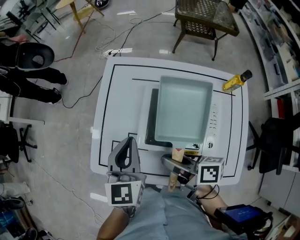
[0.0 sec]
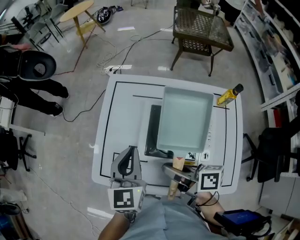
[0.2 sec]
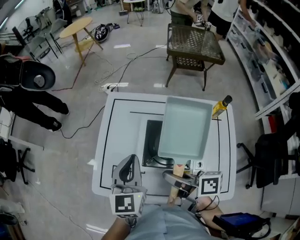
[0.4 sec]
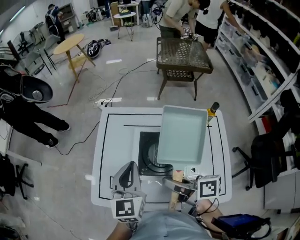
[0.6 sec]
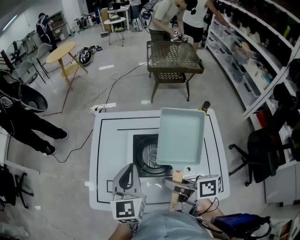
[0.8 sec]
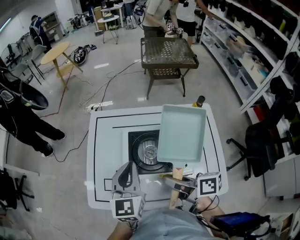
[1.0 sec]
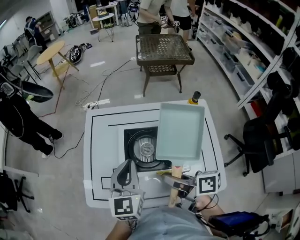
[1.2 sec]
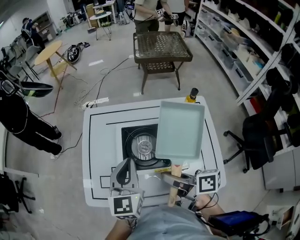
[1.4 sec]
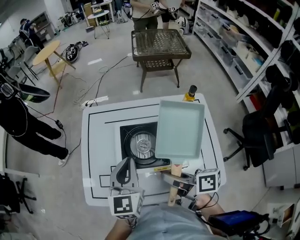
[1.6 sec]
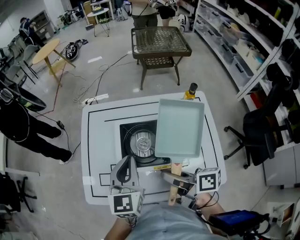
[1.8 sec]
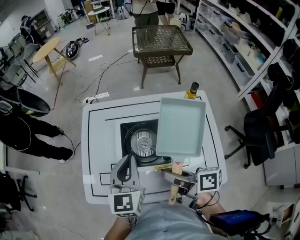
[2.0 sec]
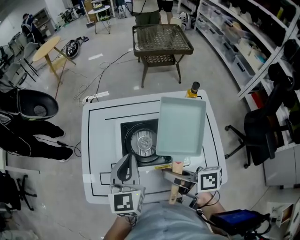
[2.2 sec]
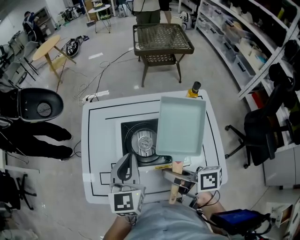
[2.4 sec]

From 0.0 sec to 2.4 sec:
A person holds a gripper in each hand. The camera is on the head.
From 0.0 sec to 1.2 sec: The left gripper moves to the right, upward and backward, approximately 10 cm; the right gripper is displaced upward, to the right and backward by some 15 cm.
From 1.2 sec to 2.4 sec: The grippers stay close to where they were, moving slightly.

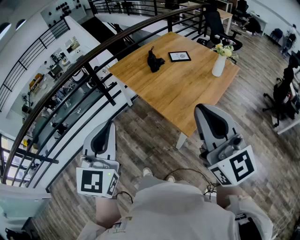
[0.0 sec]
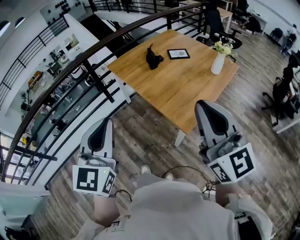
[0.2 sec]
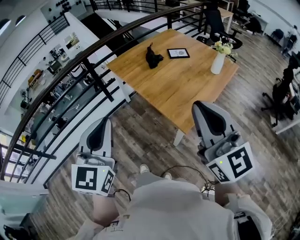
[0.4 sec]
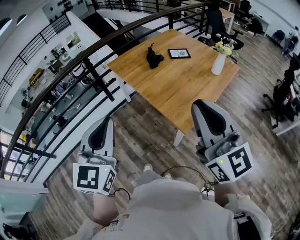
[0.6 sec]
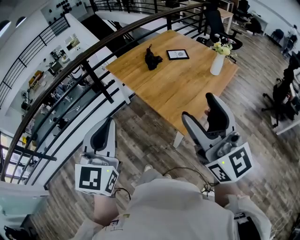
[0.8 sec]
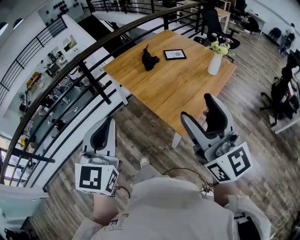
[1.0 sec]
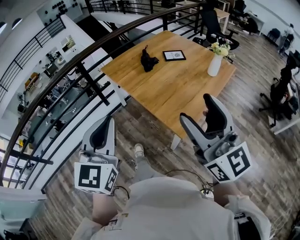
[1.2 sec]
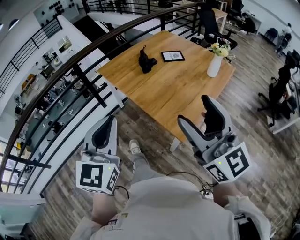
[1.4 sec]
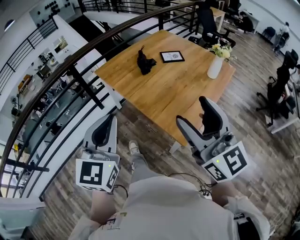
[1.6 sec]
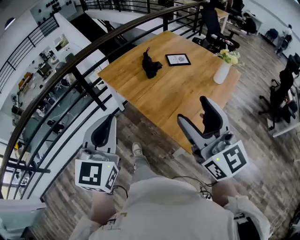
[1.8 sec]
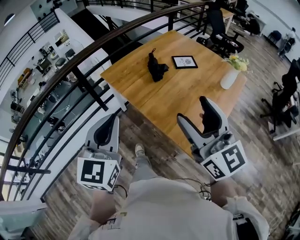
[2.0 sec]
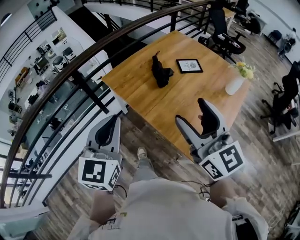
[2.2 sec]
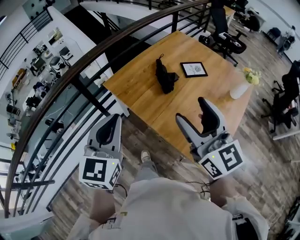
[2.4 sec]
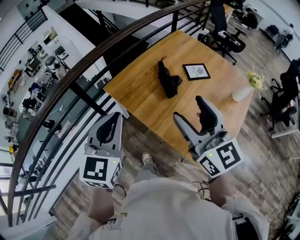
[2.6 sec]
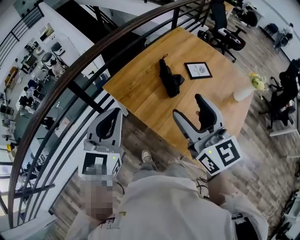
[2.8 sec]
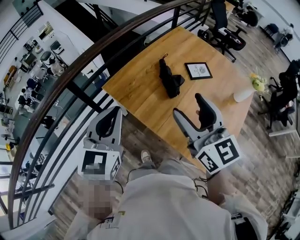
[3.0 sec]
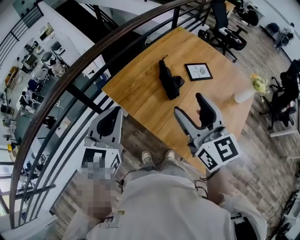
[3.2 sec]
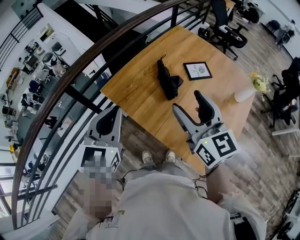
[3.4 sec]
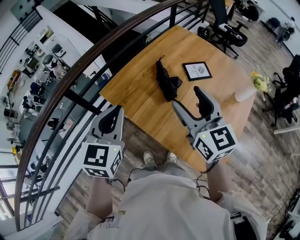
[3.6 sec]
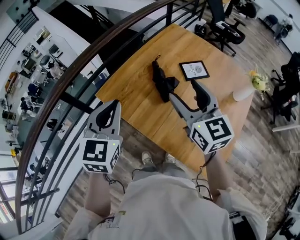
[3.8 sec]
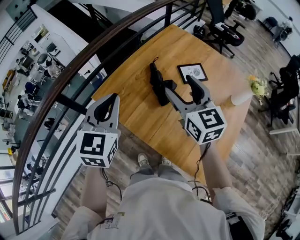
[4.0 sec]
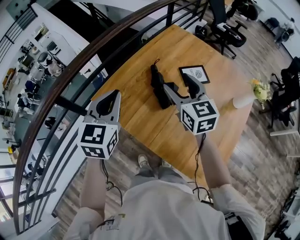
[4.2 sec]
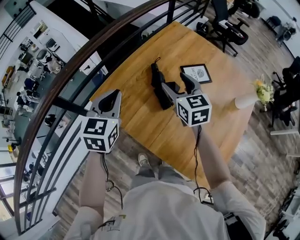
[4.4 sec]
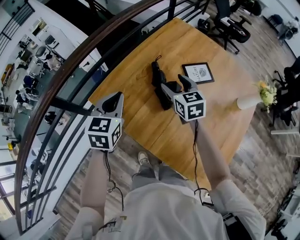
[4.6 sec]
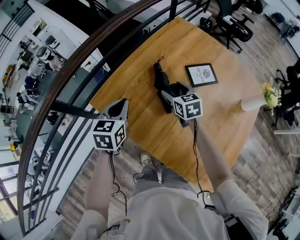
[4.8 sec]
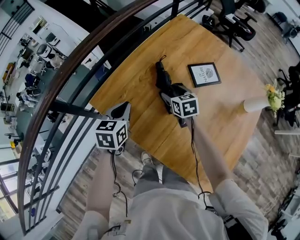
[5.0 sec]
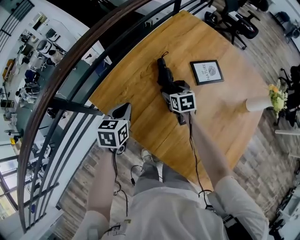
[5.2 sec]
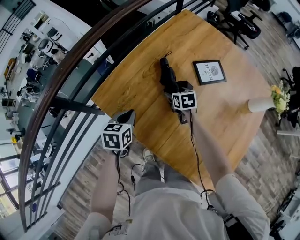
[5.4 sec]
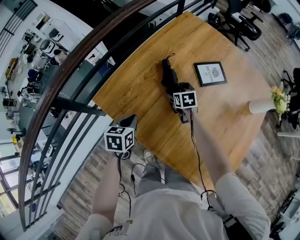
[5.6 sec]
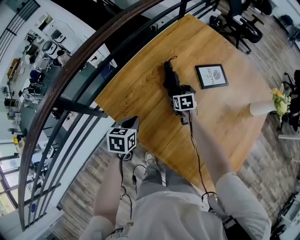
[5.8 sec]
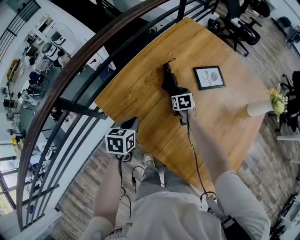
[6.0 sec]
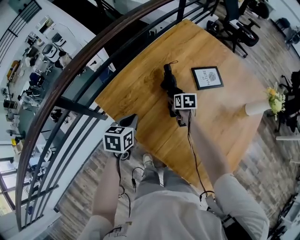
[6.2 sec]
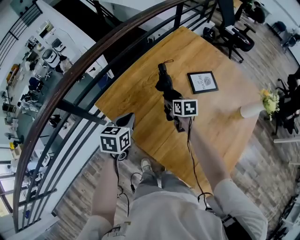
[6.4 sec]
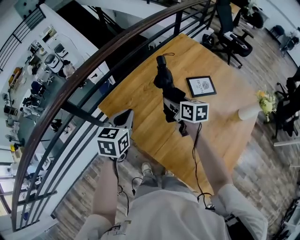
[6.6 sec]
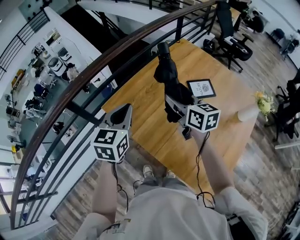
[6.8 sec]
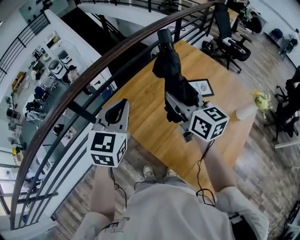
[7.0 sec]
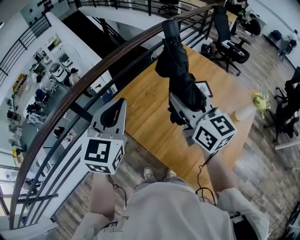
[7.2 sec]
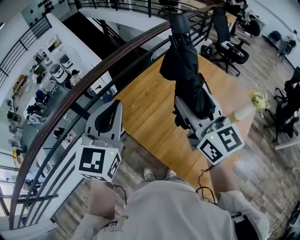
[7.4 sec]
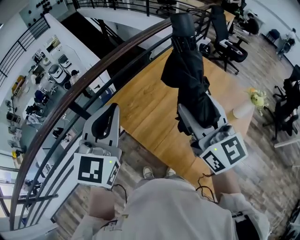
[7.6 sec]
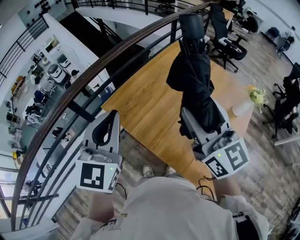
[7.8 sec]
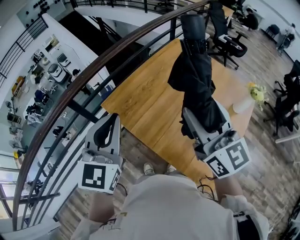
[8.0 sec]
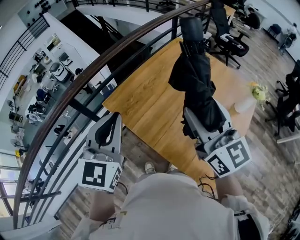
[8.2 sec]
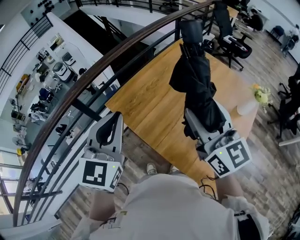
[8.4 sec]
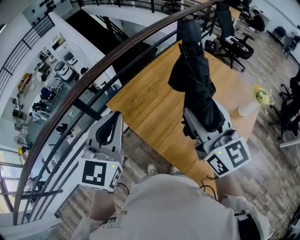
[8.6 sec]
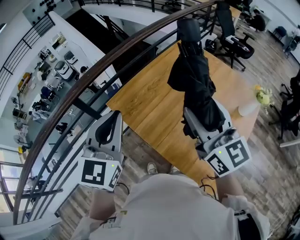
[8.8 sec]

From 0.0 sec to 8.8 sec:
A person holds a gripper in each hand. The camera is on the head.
From 0.0 sec to 1.4 sec: The two grippers go approximately 10 cm forward. The right gripper opens its fingers.
From 1.4 sec to 3.0 sec: Both grippers are carried forward and to the left, some 50 cm.
From 3.0 sec to 4.4 sec: The two grippers go roughly 25 cm forward and downward.
From 4.4 sec to 5.8 sec: Both grippers travel together downward, approximately 25 cm. The left gripper changes its angle by some 30 degrees, while the right gripper tips its fingers downward by about 30 degrees.
From 5.8 sec to 7.4 sec: The two grippers go roughly 50 cm upward. The right gripper tips its fingers upward by about 60 degrees, while the left gripper angles its fingers upward, by roughly 40 degrees.
From 7.4 sec to 8.8 sec: The right gripper changes place by roughly 5 cm.

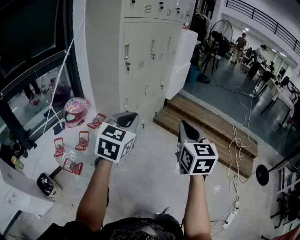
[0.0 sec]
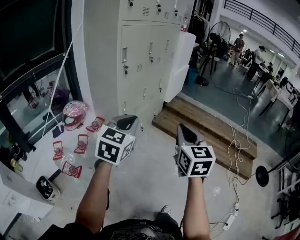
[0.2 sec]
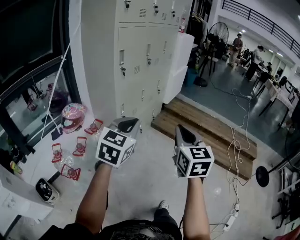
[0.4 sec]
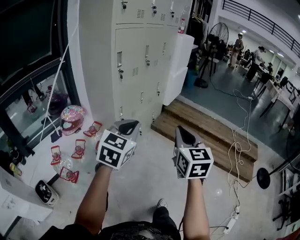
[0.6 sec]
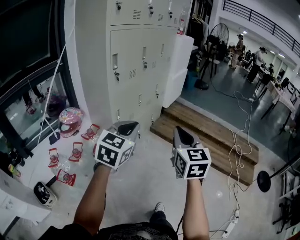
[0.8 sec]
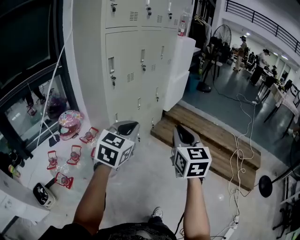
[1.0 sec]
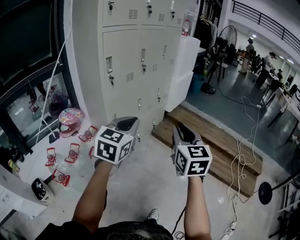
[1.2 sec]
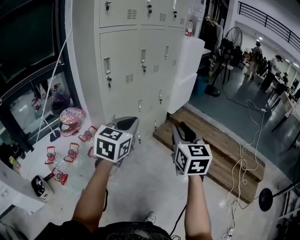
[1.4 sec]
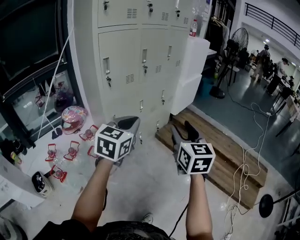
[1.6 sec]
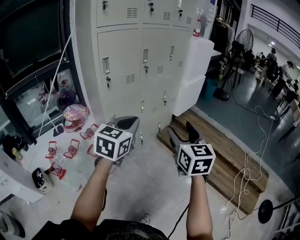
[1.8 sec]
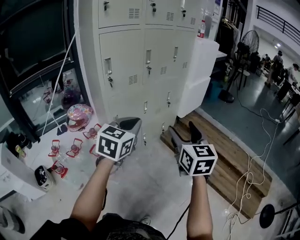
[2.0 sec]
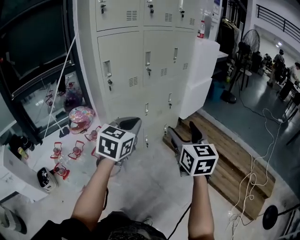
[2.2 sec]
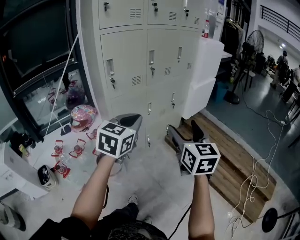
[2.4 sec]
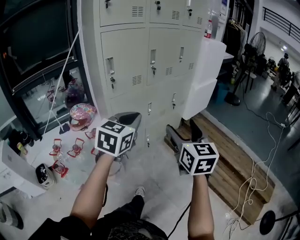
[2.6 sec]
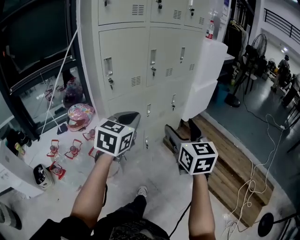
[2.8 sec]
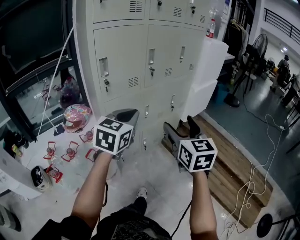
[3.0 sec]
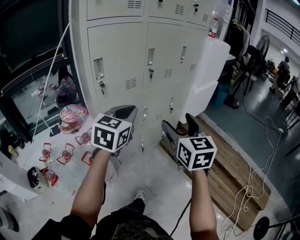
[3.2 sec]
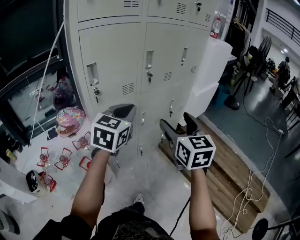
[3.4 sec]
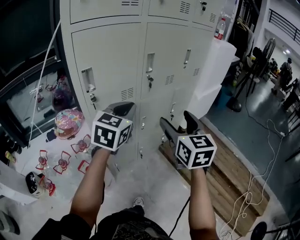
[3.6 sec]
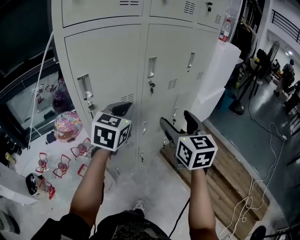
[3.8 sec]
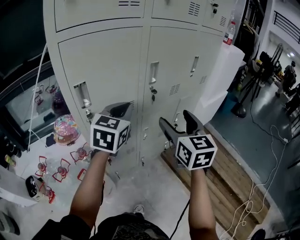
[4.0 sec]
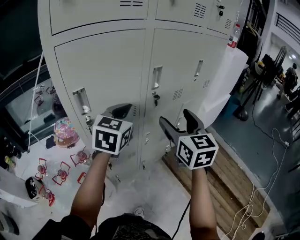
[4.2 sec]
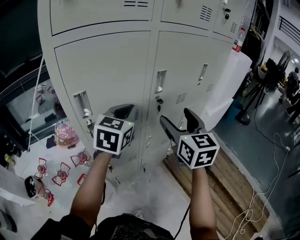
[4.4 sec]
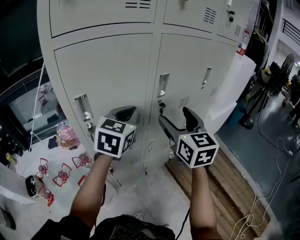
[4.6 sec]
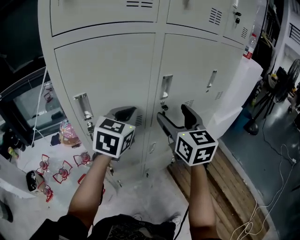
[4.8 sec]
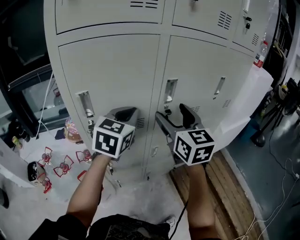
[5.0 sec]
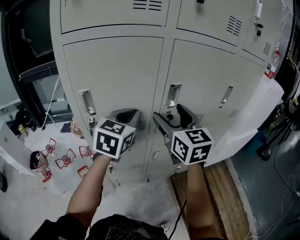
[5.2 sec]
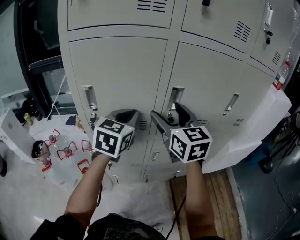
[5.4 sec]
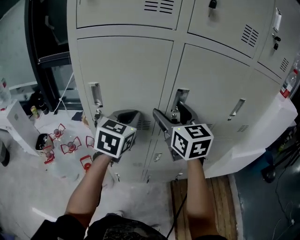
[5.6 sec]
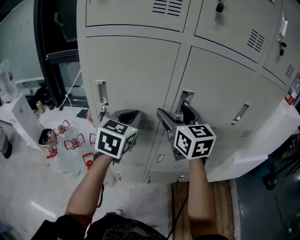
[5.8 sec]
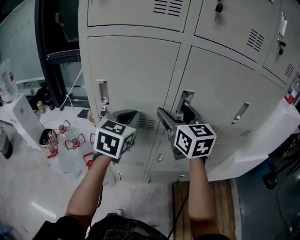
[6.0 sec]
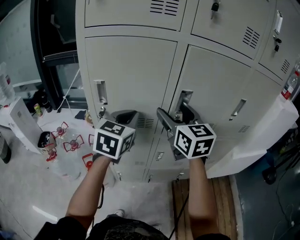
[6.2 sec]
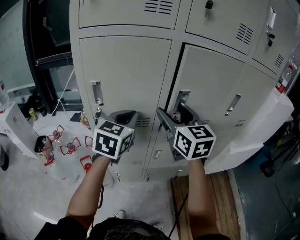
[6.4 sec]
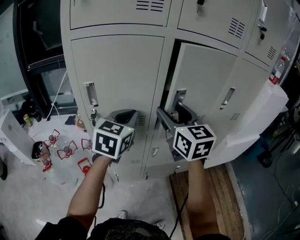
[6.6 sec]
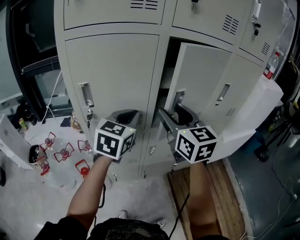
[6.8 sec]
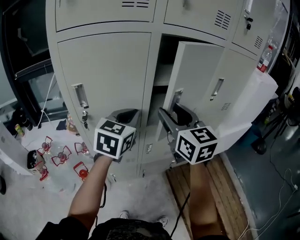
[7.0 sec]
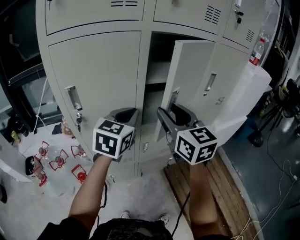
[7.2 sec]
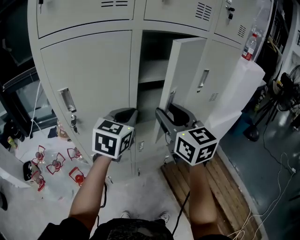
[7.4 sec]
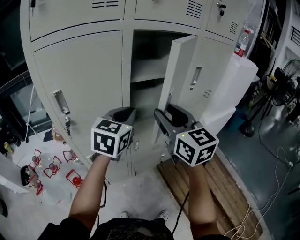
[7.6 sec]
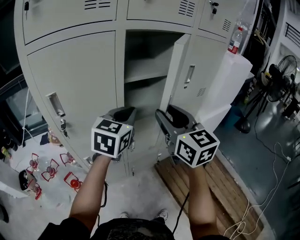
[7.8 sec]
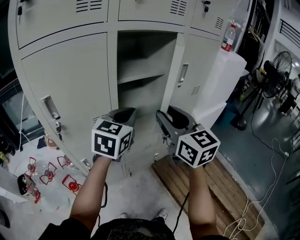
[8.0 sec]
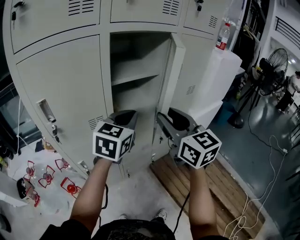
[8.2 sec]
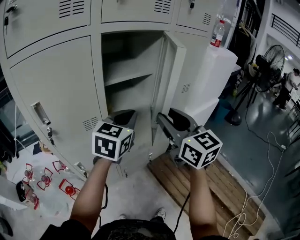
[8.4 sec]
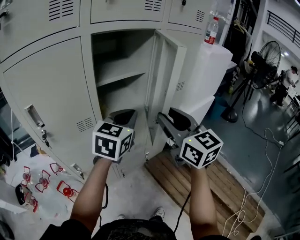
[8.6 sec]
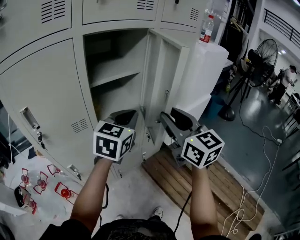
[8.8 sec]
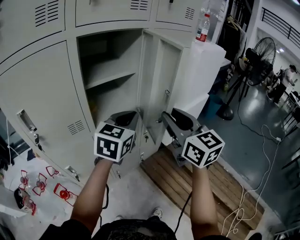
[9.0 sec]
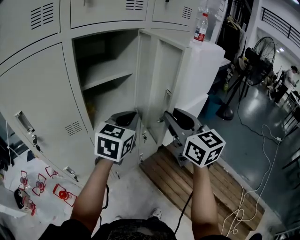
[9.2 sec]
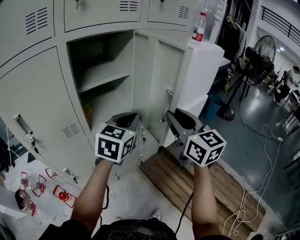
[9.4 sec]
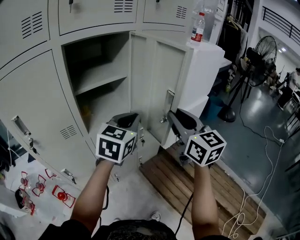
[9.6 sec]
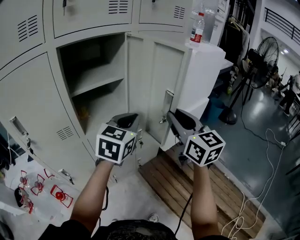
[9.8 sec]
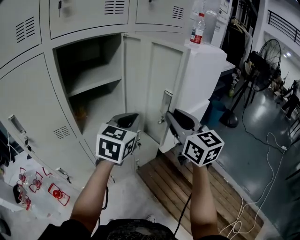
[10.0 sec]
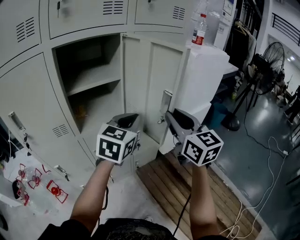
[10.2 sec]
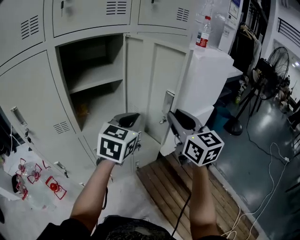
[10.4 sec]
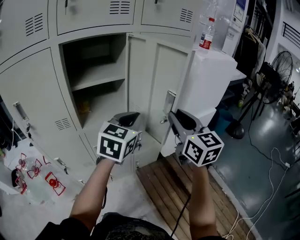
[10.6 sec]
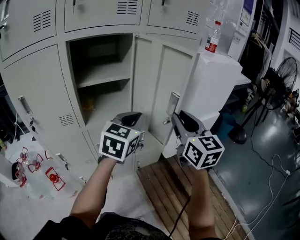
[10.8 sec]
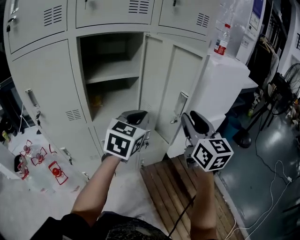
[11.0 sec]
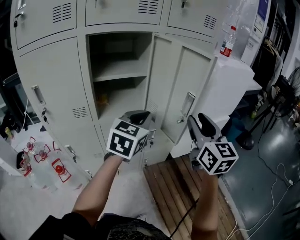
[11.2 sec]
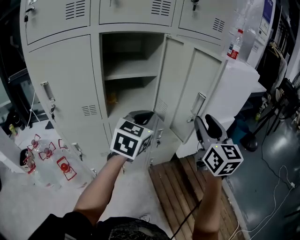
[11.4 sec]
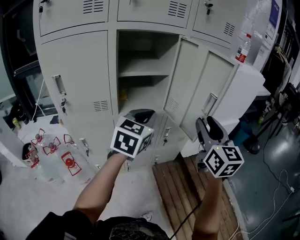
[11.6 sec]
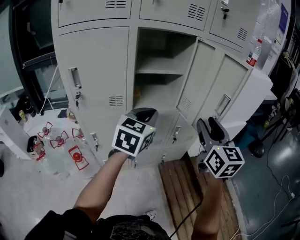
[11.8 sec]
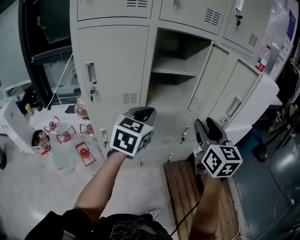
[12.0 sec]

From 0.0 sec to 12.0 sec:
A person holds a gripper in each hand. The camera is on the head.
From 0.0 sec to 1.6 sec: The grippers both shift forward and to the right by approximately 25 cm. The right gripper opens.
From 1.6 sec to 3.0 sec: The grippers both shift forward by some 15 cm. The right gripper opens up.
From 3.0 sec to 4.4 sec: The two grippers go roughly 30 cm forward.
From 4.4 sec to 6.0 sec: The right gripper changes place by about 10 cm, and turns by some 30 degrees; the left gripper swivels about 30 degrees.
From 6.0 sec to 7.6 sec: The right gripper travels backward and to the right by about 15 cm, and closes its fingers; the left gripper shifts about 10 cm to the right, and rotates some 30 degrees.
From 7.6 sec to 9.0 sec: The two grippers go about 15 cm to the right.
From 9.0 sec to 10.4 sec: The right gripper shifts some 15 cm to the right and forward, while the left gripper goes approximately 10 cm to the right.
From 10.4 sec to 12.0 sec: Both grippers travel together to the left and backward, about 20 cm.
